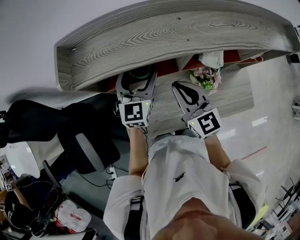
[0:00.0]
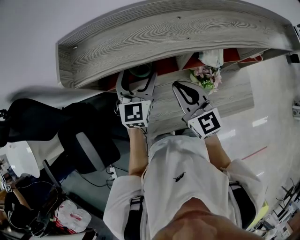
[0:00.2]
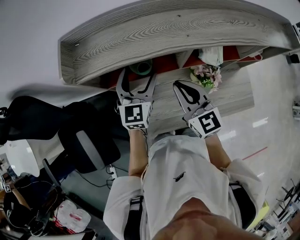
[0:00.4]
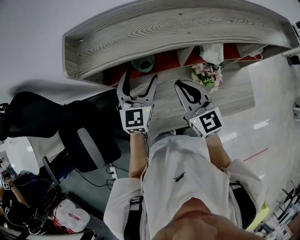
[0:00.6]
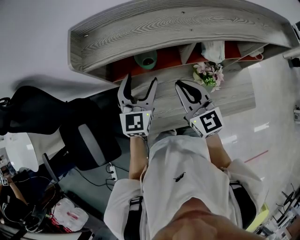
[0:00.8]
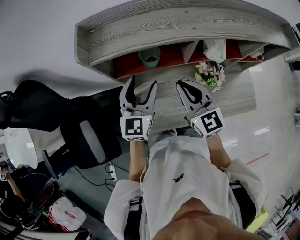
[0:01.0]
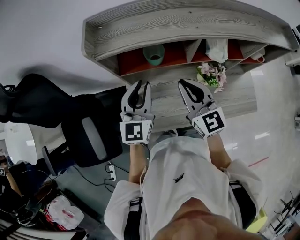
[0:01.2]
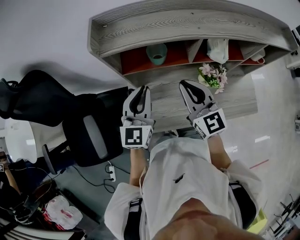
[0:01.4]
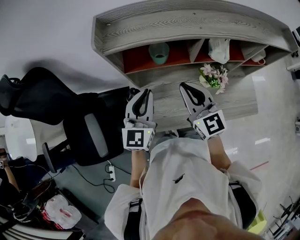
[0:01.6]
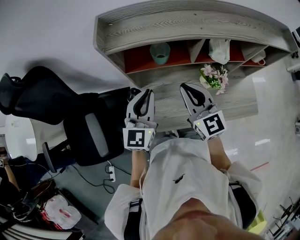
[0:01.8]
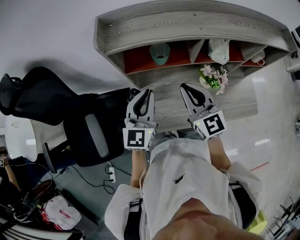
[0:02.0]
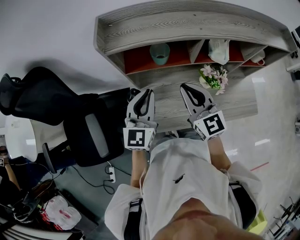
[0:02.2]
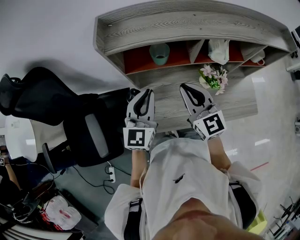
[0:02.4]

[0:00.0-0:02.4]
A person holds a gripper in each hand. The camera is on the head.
0:00.0 to 0:01.2: The right gripper changes place by approximately 5 cm; the left gripper moves backward and to the left, some 15 cm, and closes its fingers.
0:01.2 to 0:02.4: There are only small adjustments of the grippers.

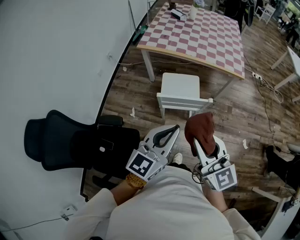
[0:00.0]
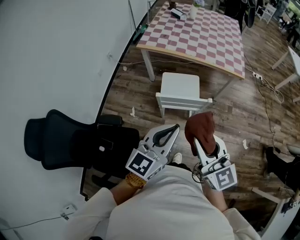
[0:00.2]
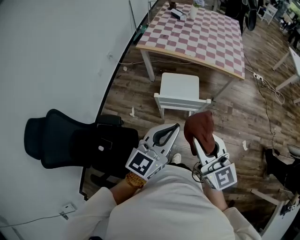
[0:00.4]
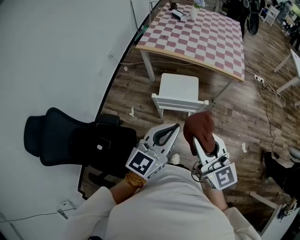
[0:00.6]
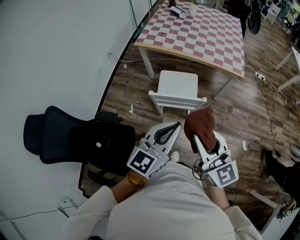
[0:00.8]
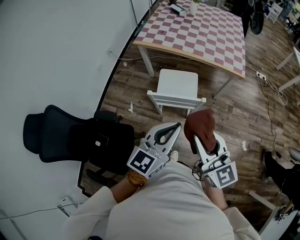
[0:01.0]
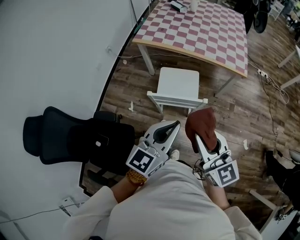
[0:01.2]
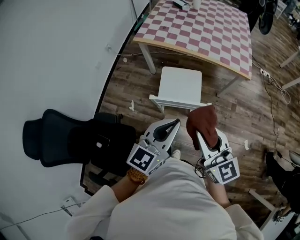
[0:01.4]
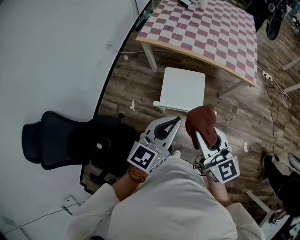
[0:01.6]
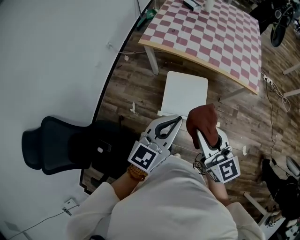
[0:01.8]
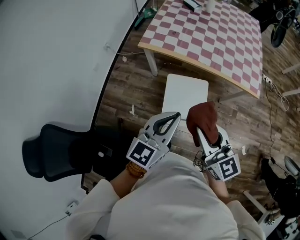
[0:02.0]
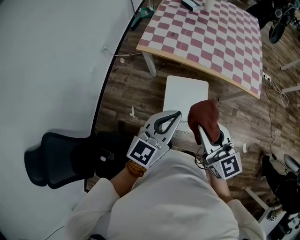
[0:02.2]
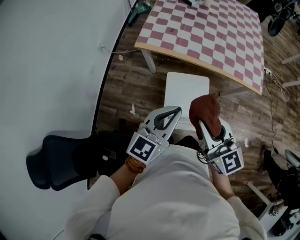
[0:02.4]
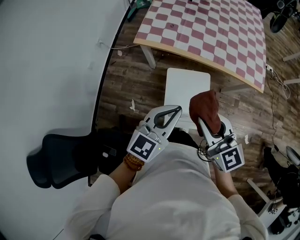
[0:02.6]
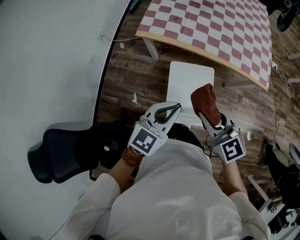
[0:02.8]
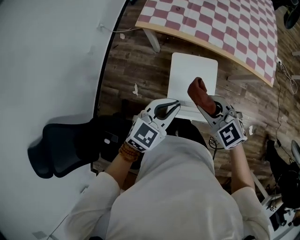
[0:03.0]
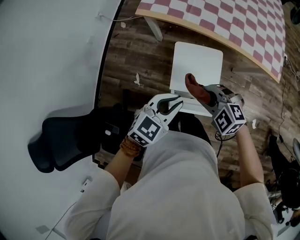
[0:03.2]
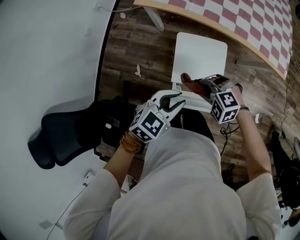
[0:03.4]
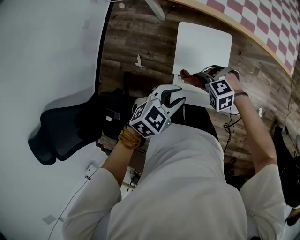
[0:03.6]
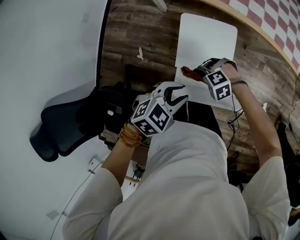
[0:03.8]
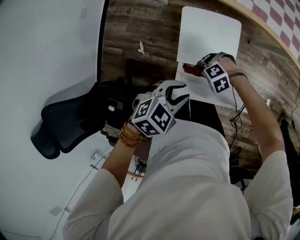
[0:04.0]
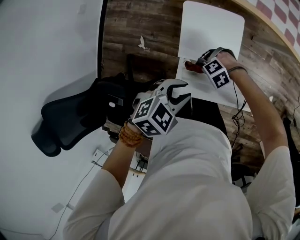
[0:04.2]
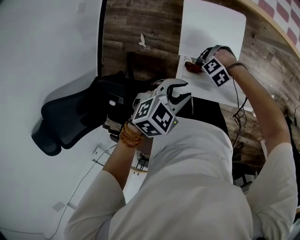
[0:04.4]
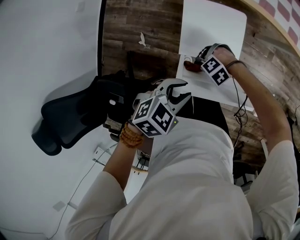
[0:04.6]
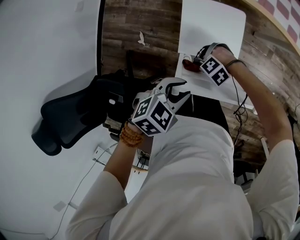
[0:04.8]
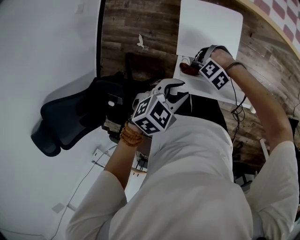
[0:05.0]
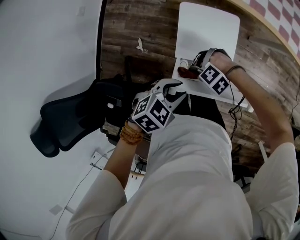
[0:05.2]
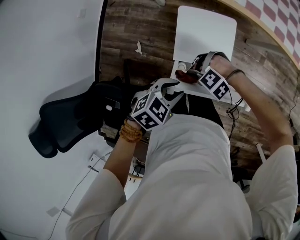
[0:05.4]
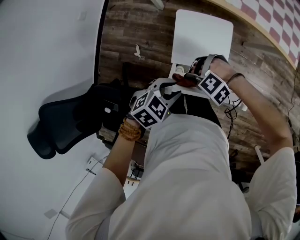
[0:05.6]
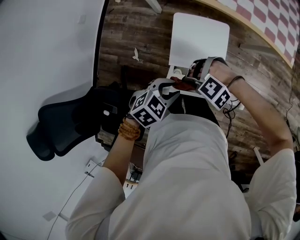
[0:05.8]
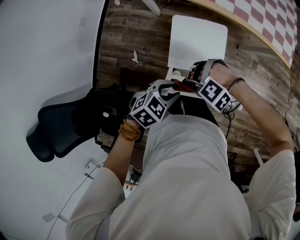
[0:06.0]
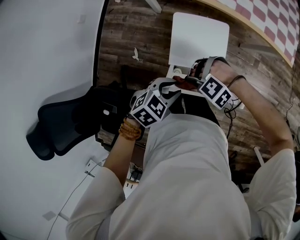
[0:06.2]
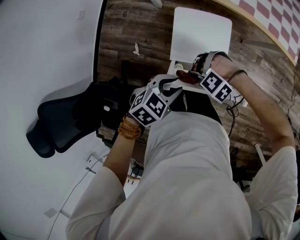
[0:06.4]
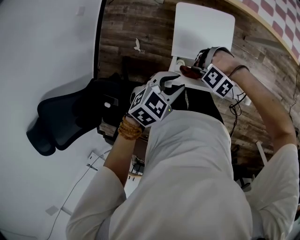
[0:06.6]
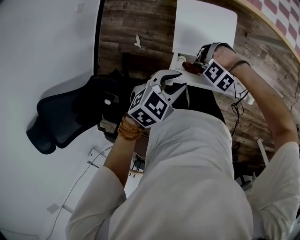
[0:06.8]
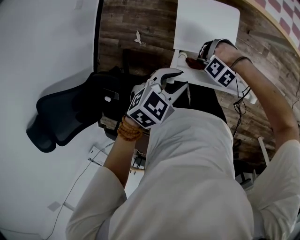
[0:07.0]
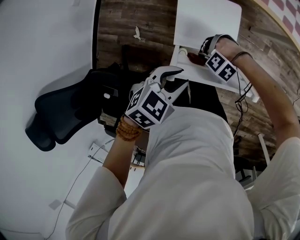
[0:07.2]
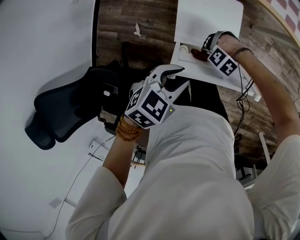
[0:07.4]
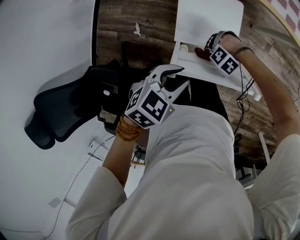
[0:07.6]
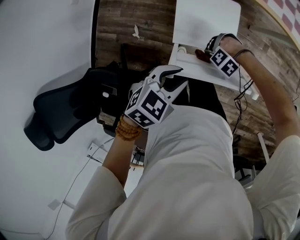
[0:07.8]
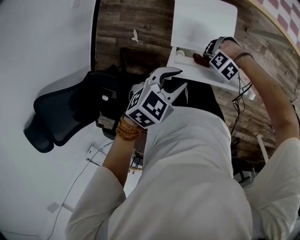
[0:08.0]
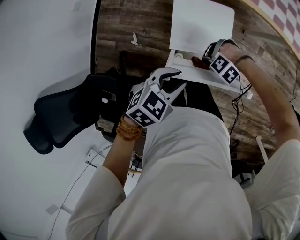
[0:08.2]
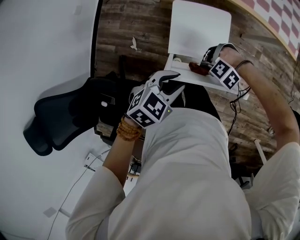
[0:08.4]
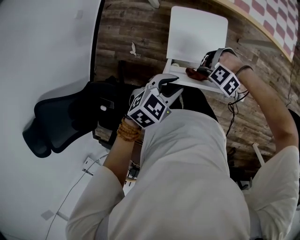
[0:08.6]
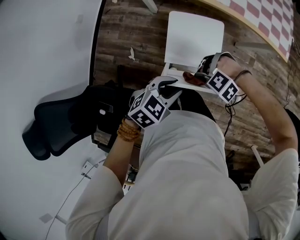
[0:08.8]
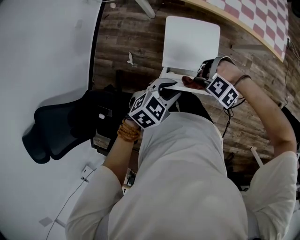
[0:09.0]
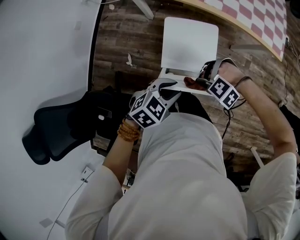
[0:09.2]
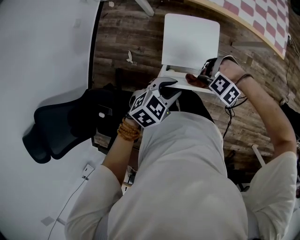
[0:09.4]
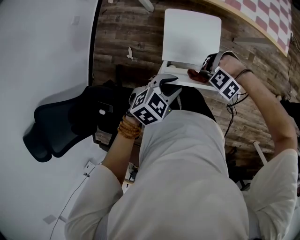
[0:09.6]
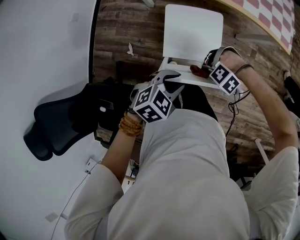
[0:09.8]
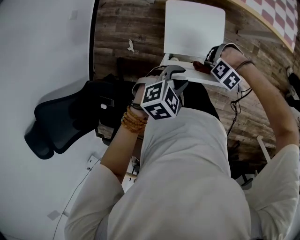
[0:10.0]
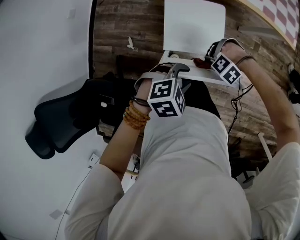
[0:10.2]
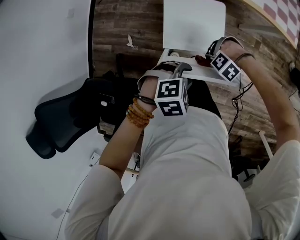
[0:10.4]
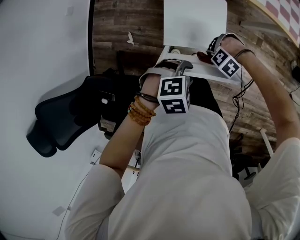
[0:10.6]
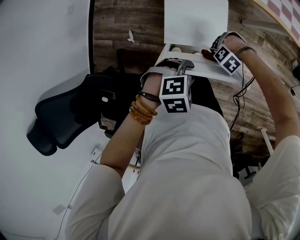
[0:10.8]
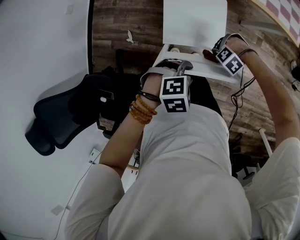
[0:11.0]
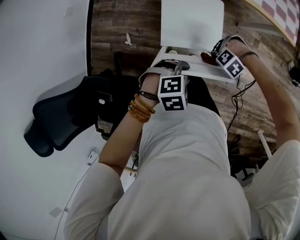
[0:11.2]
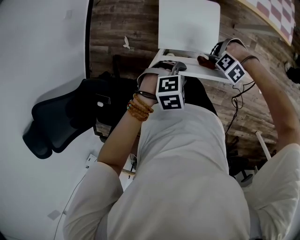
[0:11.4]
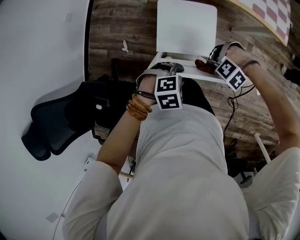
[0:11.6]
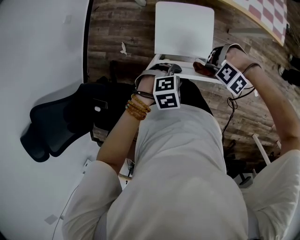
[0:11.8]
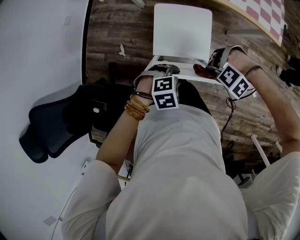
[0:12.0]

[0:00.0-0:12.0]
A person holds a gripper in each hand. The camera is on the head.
0:00.0 to 0:01.6: The grippers both shift forward by roughly 15 cm.
0:01.6 to 0:03.0: The grippers both shift forward, downward and to the left by some 25 cm. The left gripper swivels some 30 degrees, while the right gripper turns by roughly 40 degrees.
0:03.0 to 0:04.4: The right gripper travels downward by roughly 35 cm, and turns by some 80 degrees, while the left gripper heads downward, covering about 15 cm, rotates approximately 30 degrees, and opens its fingers.
0:04.4 to 0:06.0: The right gripper is displaced upward by some 15 cm.
0:06.0 to 0:07.6: The right gripper goes about 20 cm downward.
0:07.6 to 0:09.0: The right gripper is displaced upward by approximately 15 cm.
0:09.0 to 0:10.4: The right gripper moves downward, roughly 10 cm, while the left gripper heads downward, covering about 5 cm, and rotates about 30 degrees.
0:10.4 to 0:12.0: The right gripper heads upward, covering approximately 10 cm.

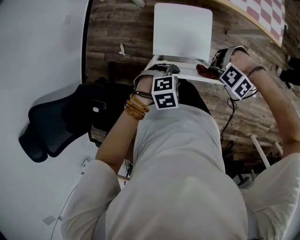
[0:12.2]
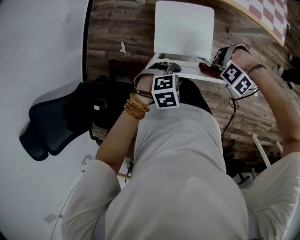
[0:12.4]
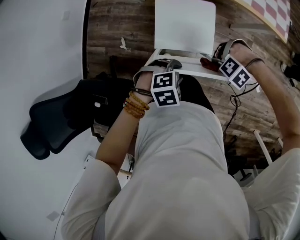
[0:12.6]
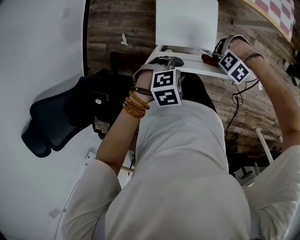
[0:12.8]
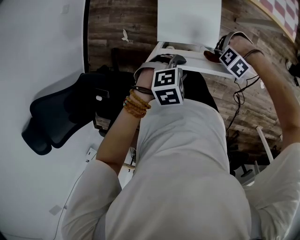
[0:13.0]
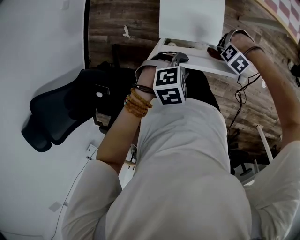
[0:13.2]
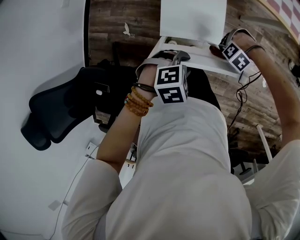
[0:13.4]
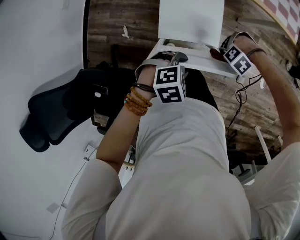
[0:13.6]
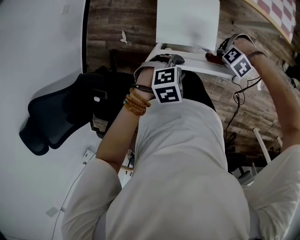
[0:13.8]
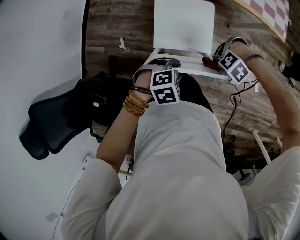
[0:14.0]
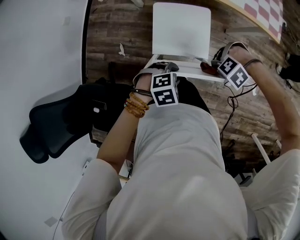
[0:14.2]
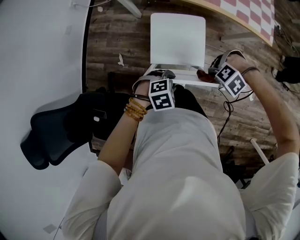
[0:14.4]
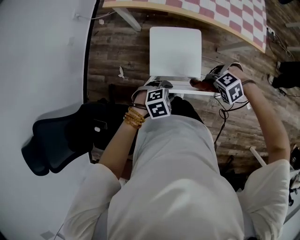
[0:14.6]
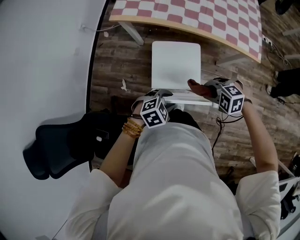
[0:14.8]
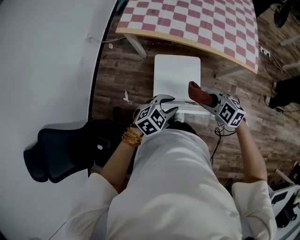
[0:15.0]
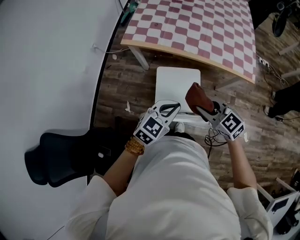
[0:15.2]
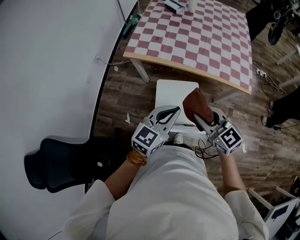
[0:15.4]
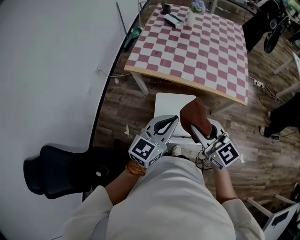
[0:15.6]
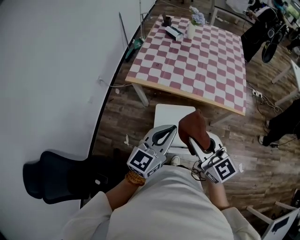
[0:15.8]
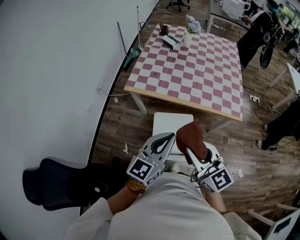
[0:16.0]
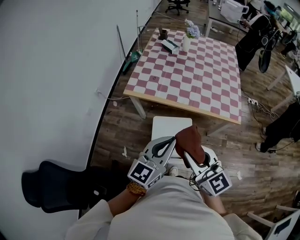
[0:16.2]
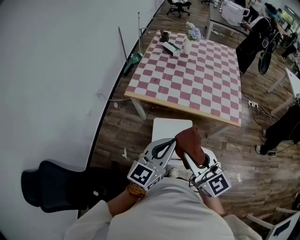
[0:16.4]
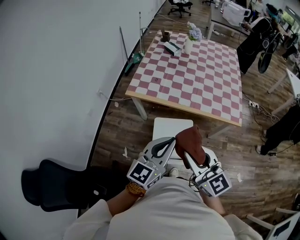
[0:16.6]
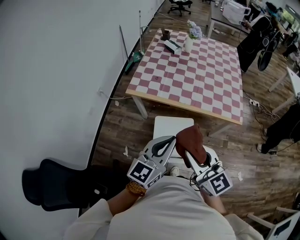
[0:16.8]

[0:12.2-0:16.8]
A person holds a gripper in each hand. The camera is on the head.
0:12.2 to 0:13.8: The right gripper is displaced downward by approximately 10 cm.
0:13.8 to 0:15.2: The two grippers go roughly 25 cm upward. The left gripper points its fingers approximately 40 degrees further upward, and closes up. Meanwhile the right gripper angles its fingers upward, by roughly 40 degrees.
0:15.2 to 0:16.8: The two grippers go some 20 cm upward. The left gripper changes its angle by roughly 30 degrees, while the right gripper rotates approximately 30 degrees.

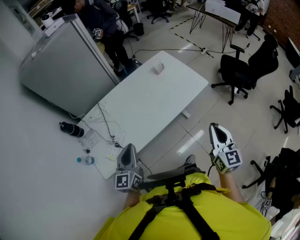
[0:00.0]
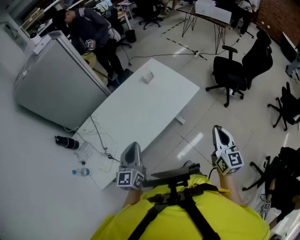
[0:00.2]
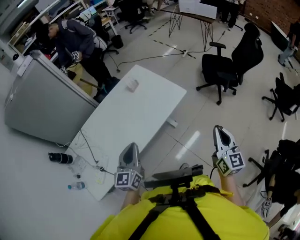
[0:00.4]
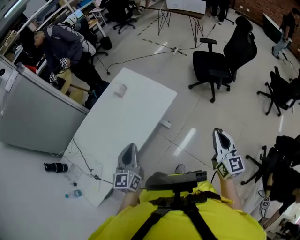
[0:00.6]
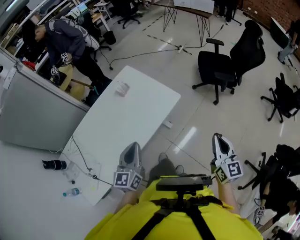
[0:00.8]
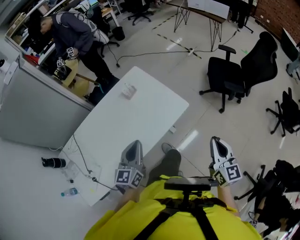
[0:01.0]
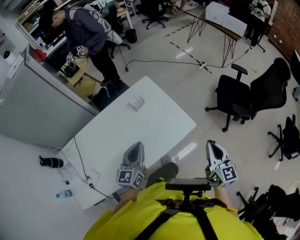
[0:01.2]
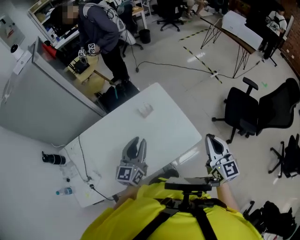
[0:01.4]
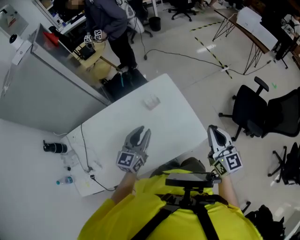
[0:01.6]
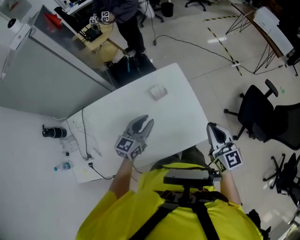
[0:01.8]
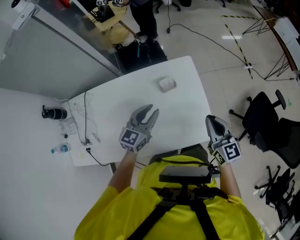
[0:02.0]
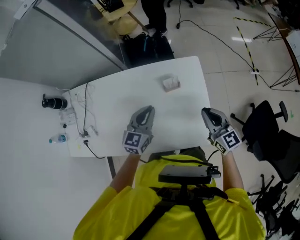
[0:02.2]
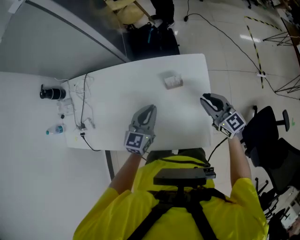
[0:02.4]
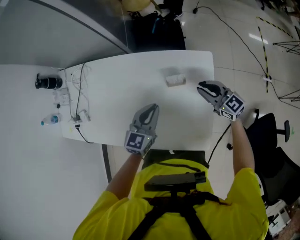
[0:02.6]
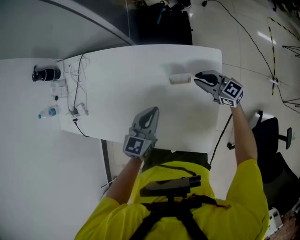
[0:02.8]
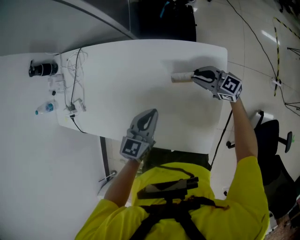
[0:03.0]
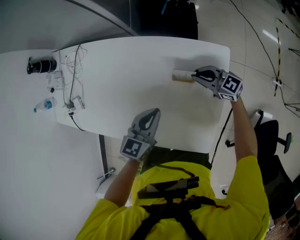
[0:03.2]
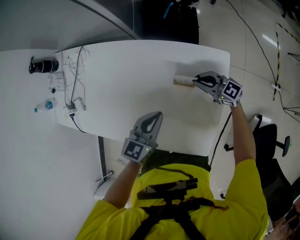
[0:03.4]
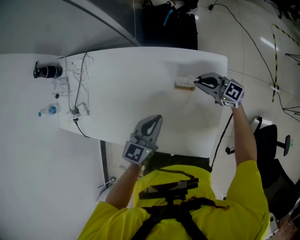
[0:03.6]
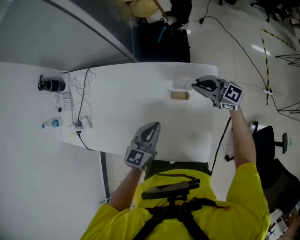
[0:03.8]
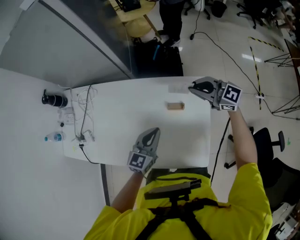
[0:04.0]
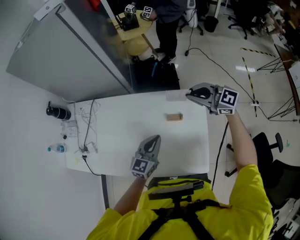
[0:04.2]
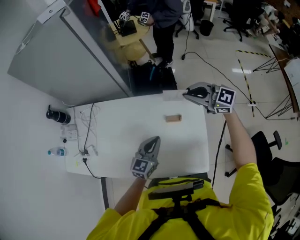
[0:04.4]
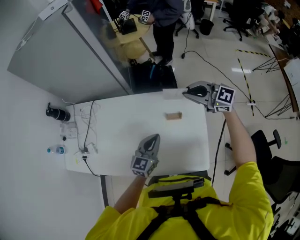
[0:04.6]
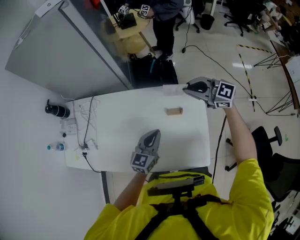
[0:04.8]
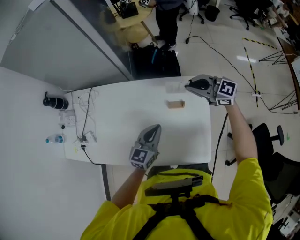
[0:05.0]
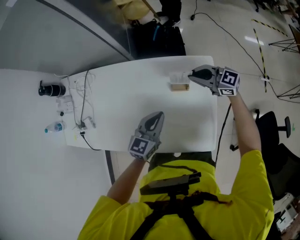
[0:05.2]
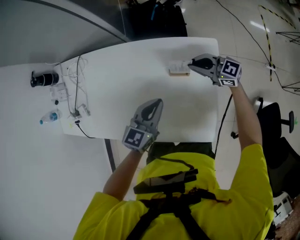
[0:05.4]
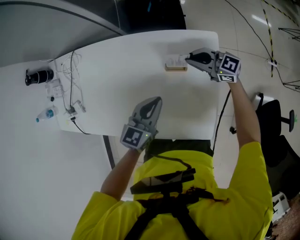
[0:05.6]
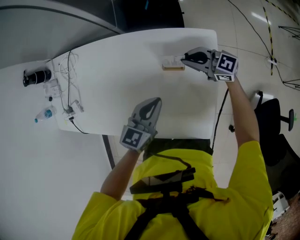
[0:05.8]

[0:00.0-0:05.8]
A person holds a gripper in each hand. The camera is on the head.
0:00.0 to 0:01.4: The pair of grippers is taken forward, some 40 cm. The left gripper opens up.
0:01.4 to 0:02.8: The left gripper shifts about 15 cm downward, swivels about 30 degrees, and closes its fingers. The right gripper moves roughly 50 cm, and swivels about 80 degrees.
0:02.8 to 0:04.4: The right gripper is displaced upward by approximately 25 cm, and swivels about 20 degrees; the left gripper travels upward by about 5 cm.
0:04.4 to 0:05.8: The left gripper goes approximately 10 cm downward, while the right gripper goes about 25 cm downward.
